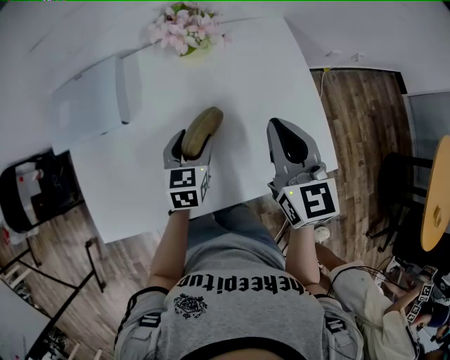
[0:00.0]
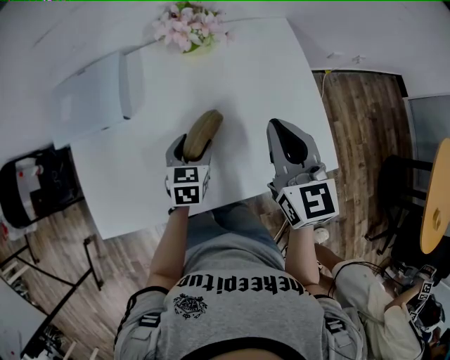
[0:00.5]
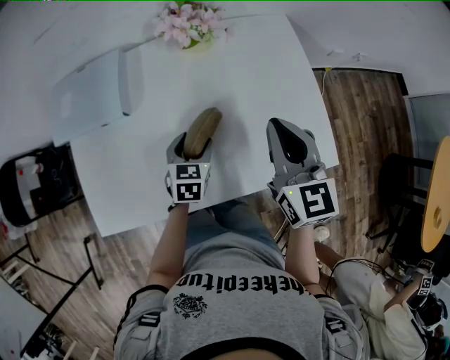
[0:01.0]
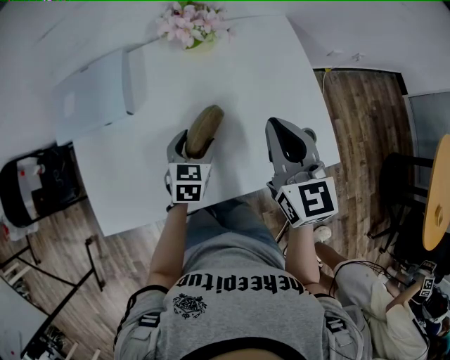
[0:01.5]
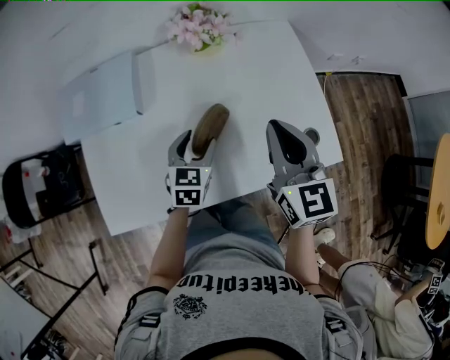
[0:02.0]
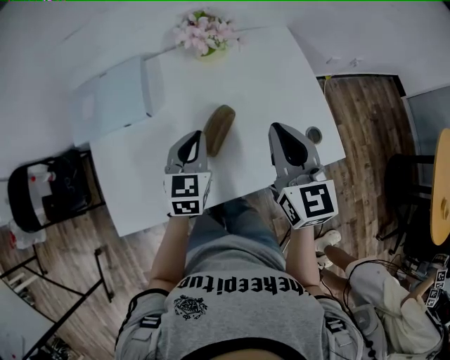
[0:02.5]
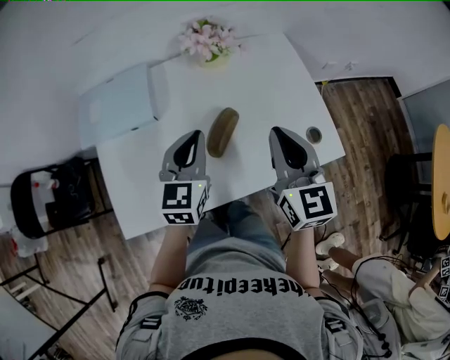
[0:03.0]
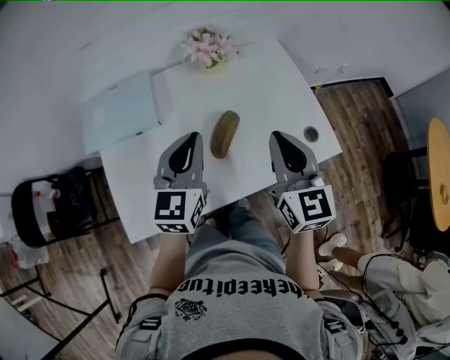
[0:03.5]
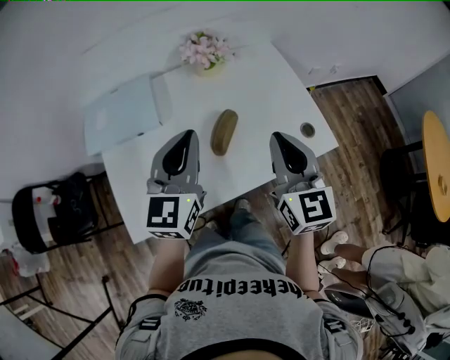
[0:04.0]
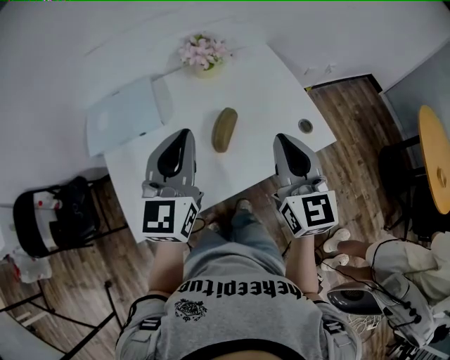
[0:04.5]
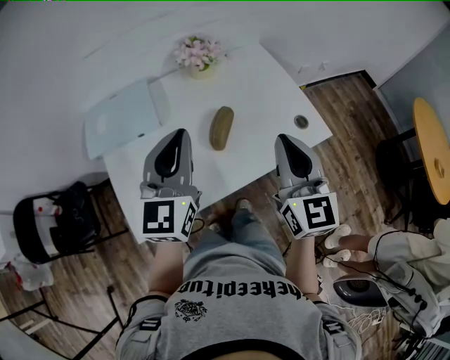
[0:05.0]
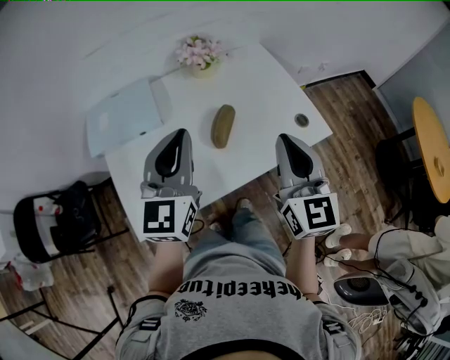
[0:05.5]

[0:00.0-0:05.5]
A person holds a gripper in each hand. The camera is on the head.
0:00.0 to 0:02.0: The right gripper ends up about 5 cm from where it was.
0:02.0 to 0:03.5: The right gripper heads backward, covering some 5 cm, while the left gripper is displaced upward by about 20 cm, turns by about 30 degrees, and closes up.
0:03.5 to 0:05.5: The left gripper heads upward and backward, covering roughly 10 cm; the right gripper is displaced backward by roughly 10 cm.

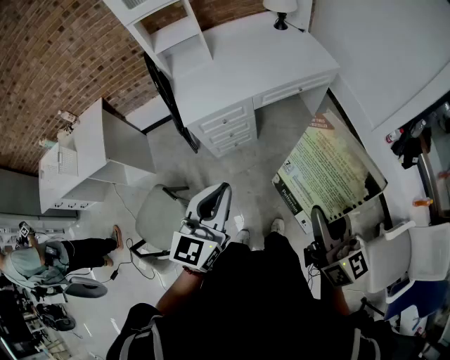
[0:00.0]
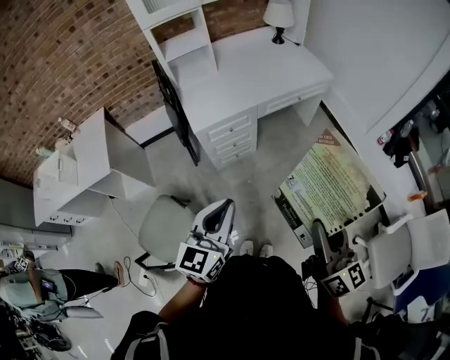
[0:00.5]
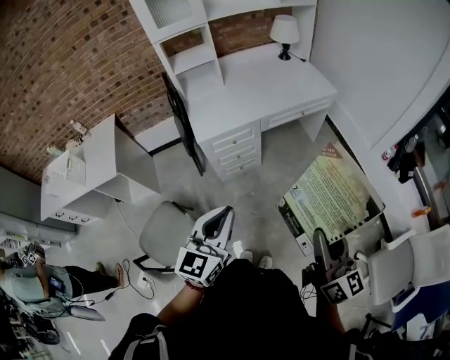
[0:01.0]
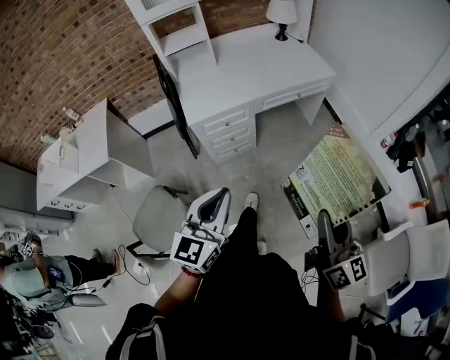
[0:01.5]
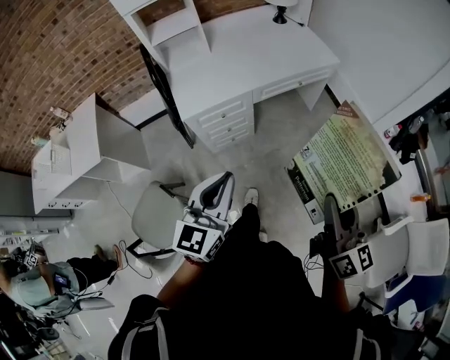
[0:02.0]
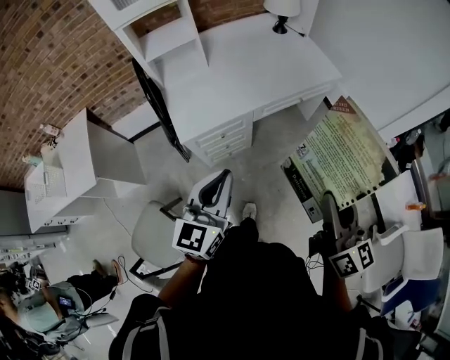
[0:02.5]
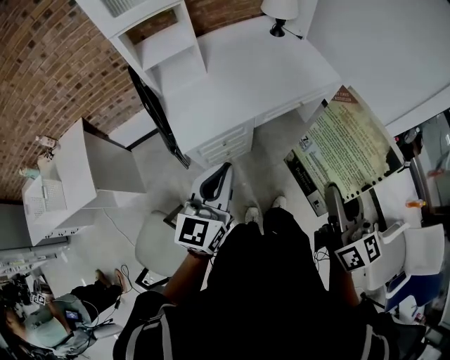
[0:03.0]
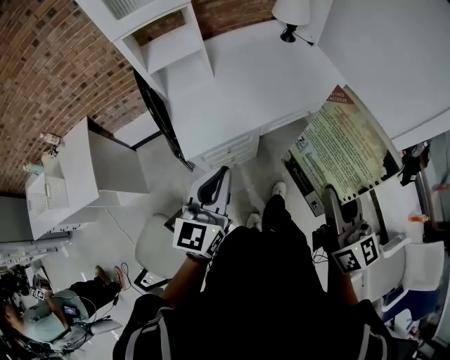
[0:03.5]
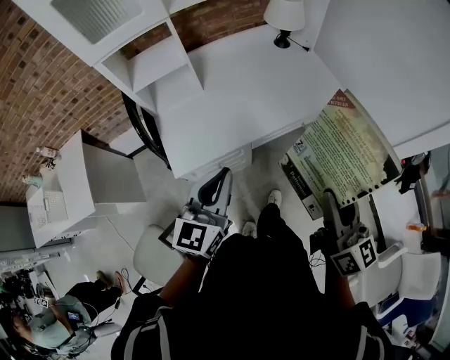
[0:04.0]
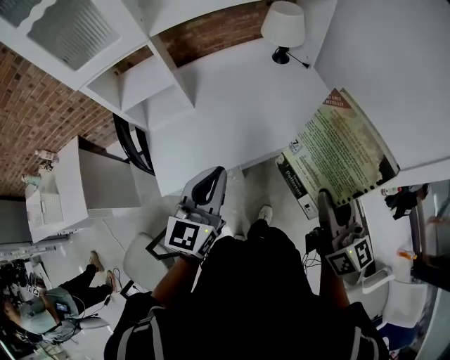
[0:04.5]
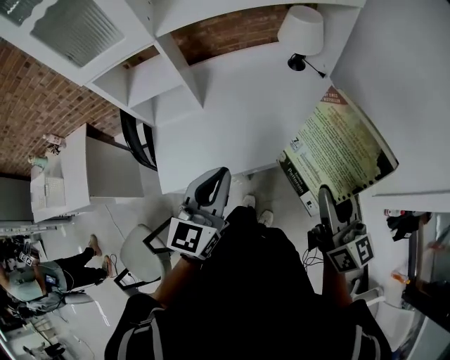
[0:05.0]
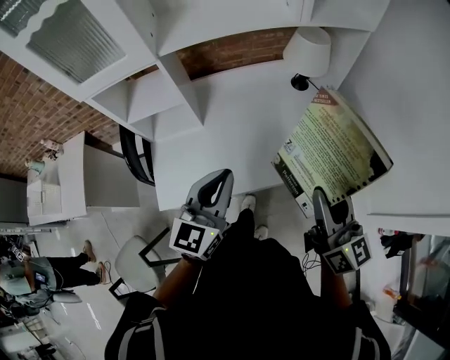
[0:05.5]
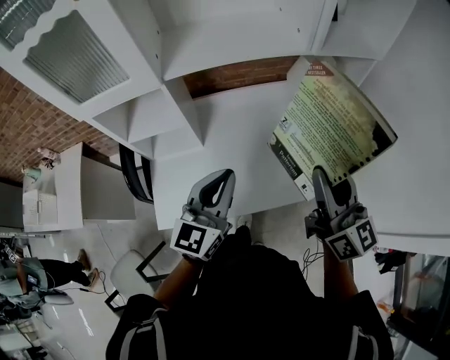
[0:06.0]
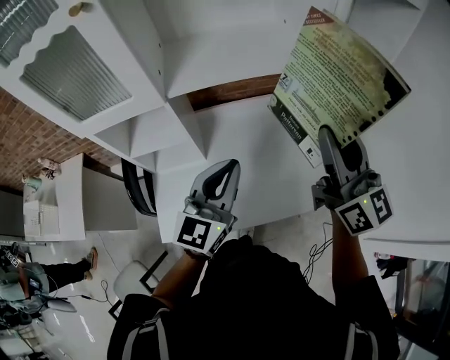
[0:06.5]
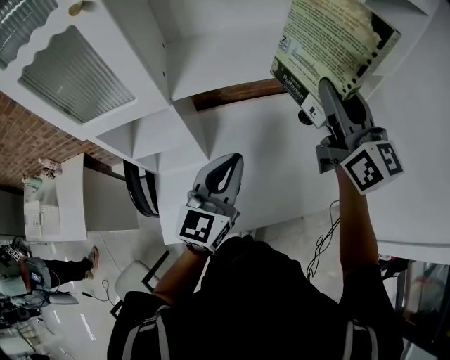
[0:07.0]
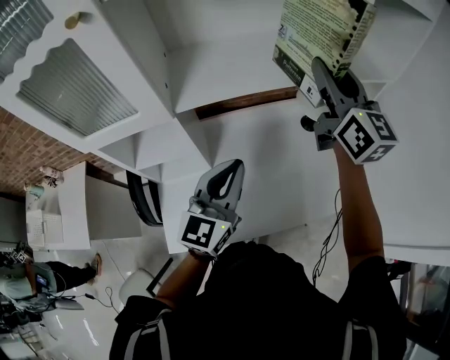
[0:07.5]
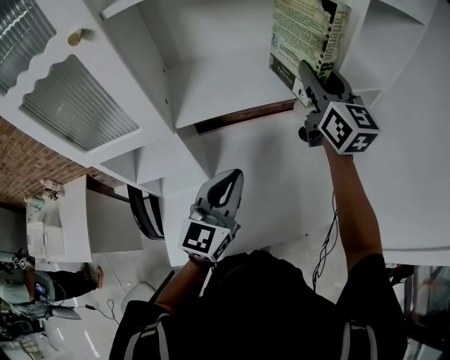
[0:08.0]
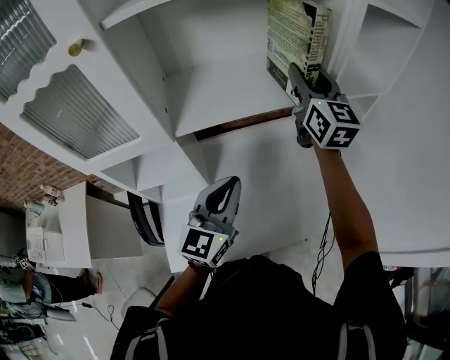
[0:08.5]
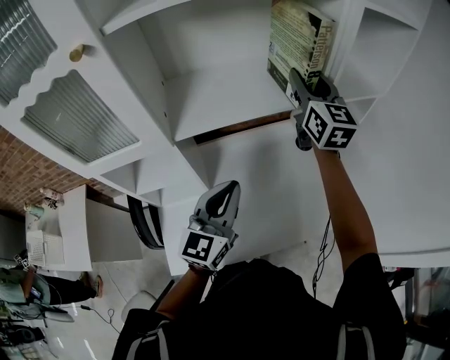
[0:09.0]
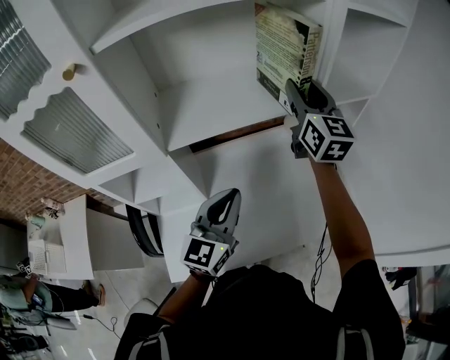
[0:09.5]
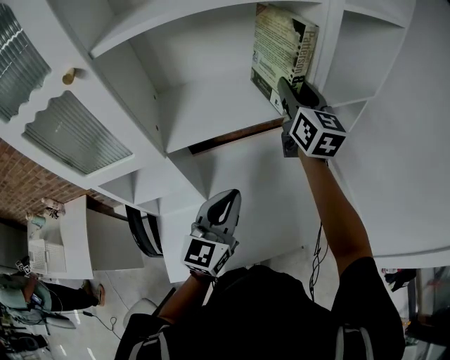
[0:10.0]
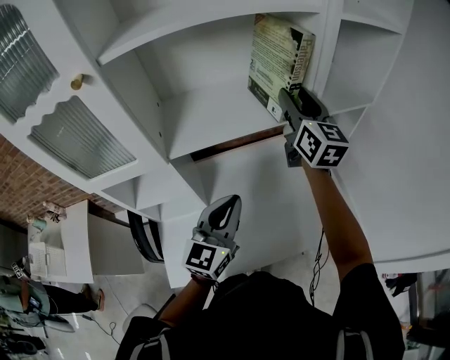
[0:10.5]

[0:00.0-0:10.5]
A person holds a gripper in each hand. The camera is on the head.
0:00.0 to 0:02.0: The left gripper reaches roughly 10 cm backward, then returns, while the right gripper moves some 10 cm backward and comes back.
0:02.0 to 0:04.0: Both grippers travel together forward, some 30 cm.
0:04.0 to 0:06.5: The grippers both shift forward by some 40 cm. The right gripper changes its angle by roughly 20 degrees.
0:06.5 to 0:08.5: The left gripper heads forward, covering approximately 5 cm; the right gripper goes about 20 cm forward.
0:08.5 to 0:10.5: The grippers stay close to where they were, moving slightly.

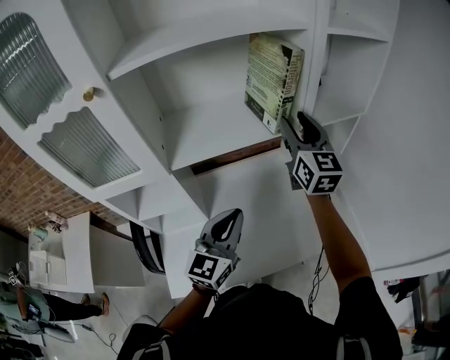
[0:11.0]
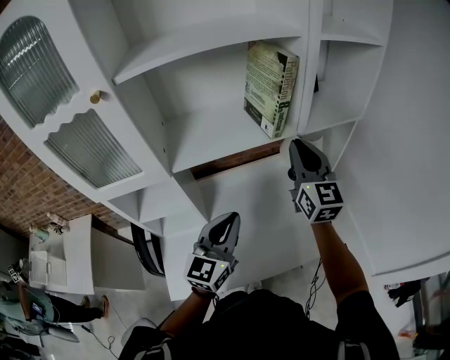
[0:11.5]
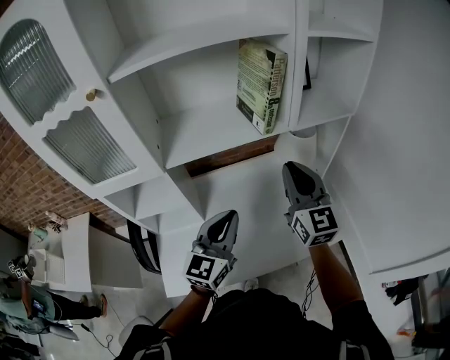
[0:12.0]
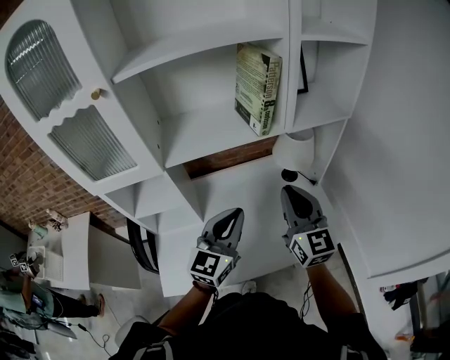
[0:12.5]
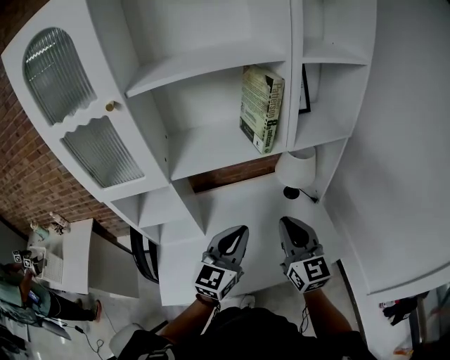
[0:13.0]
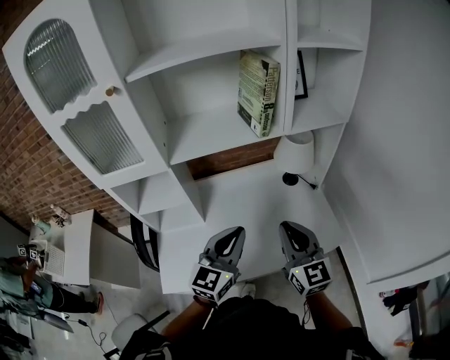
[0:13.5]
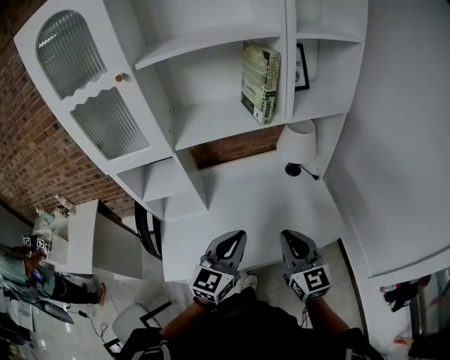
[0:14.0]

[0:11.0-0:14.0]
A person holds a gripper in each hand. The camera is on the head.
0:11.0 to 0:12.5: The right gripper heads backward and downward, covering about 20 cm, and closes.
0:12.5 to 0:14.0: The right gripper travels backward and downward by about 15 cm. The left gripper heads backward, covering approximately 10 cm.

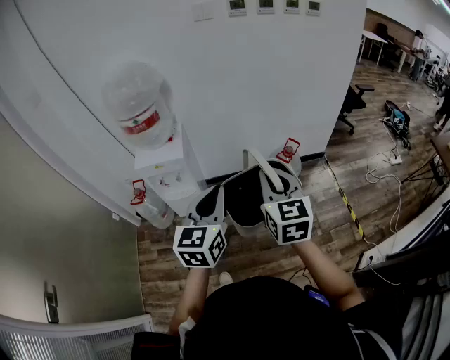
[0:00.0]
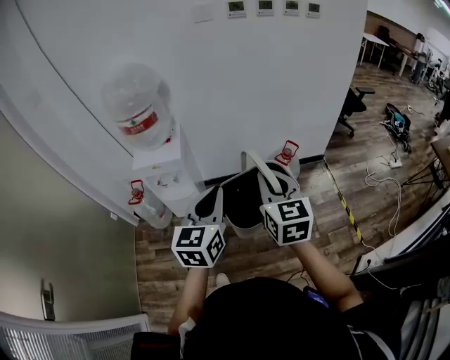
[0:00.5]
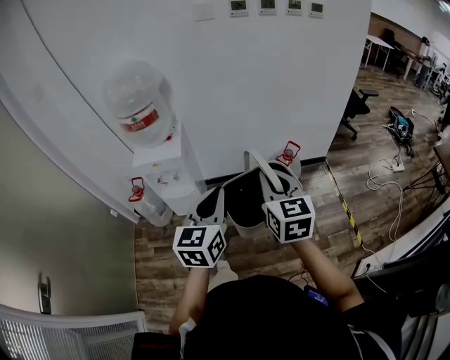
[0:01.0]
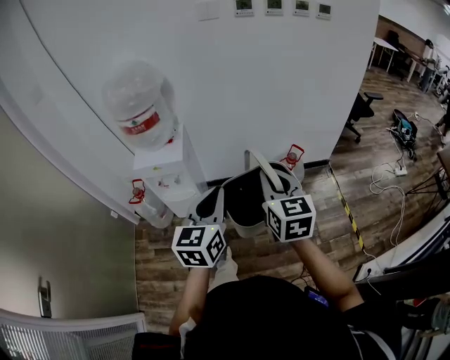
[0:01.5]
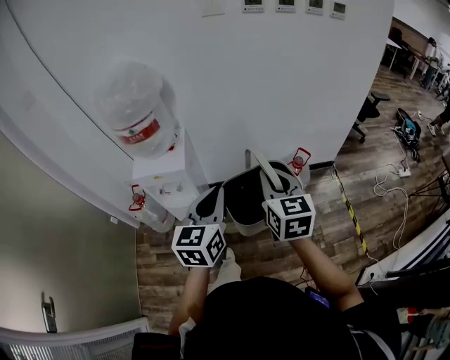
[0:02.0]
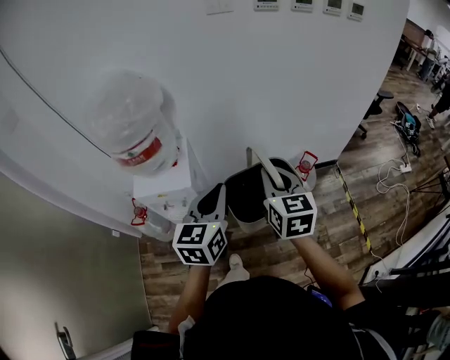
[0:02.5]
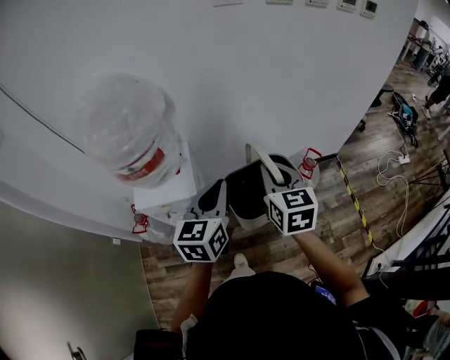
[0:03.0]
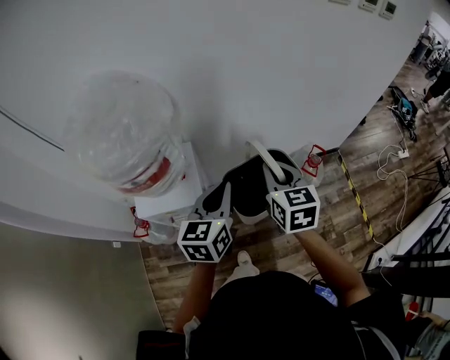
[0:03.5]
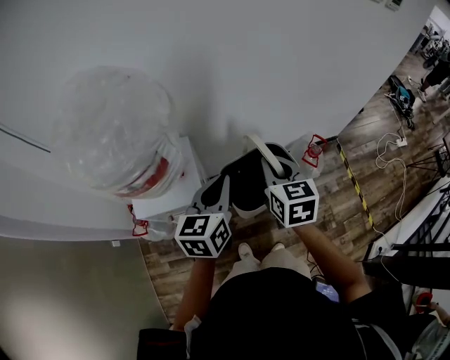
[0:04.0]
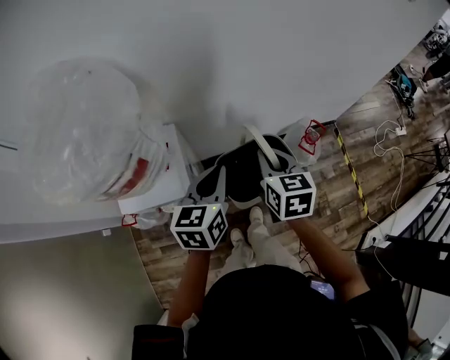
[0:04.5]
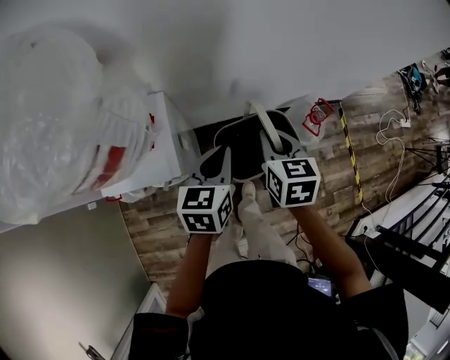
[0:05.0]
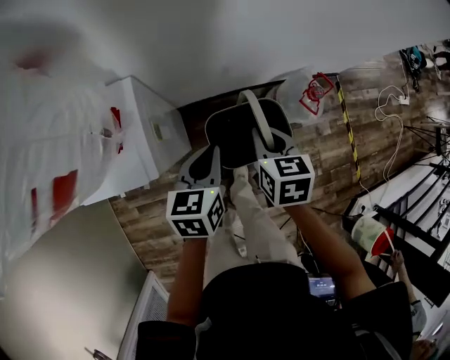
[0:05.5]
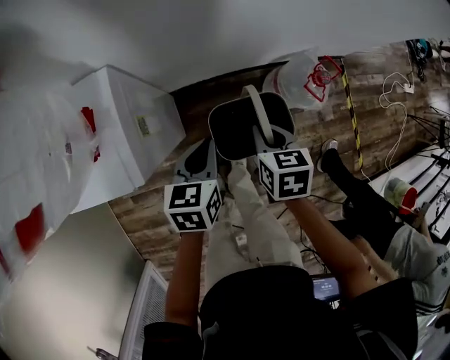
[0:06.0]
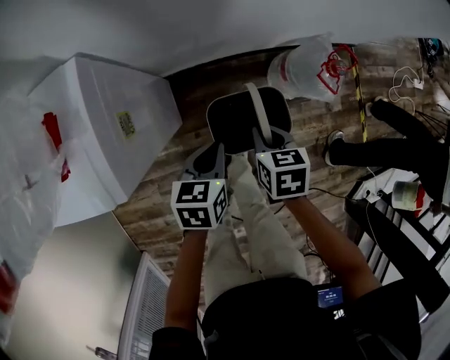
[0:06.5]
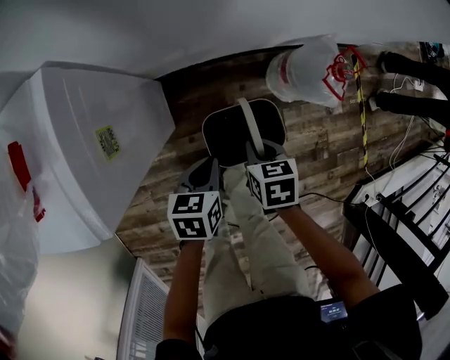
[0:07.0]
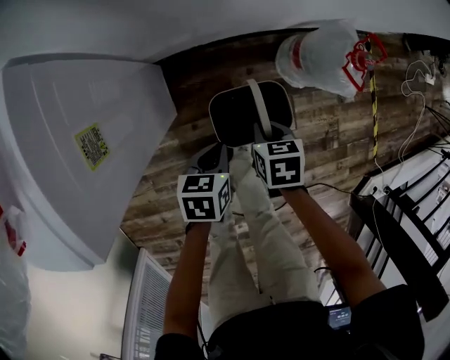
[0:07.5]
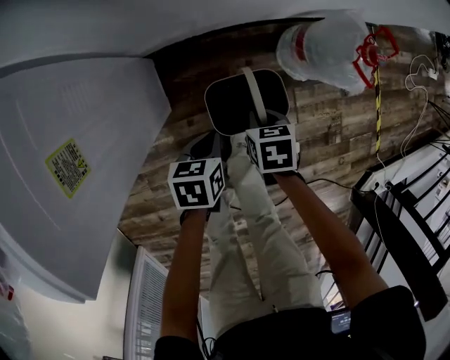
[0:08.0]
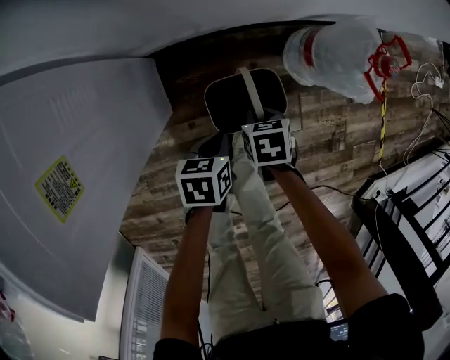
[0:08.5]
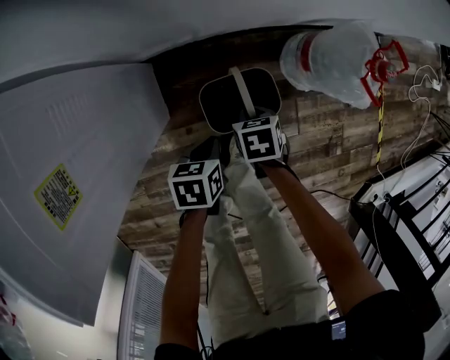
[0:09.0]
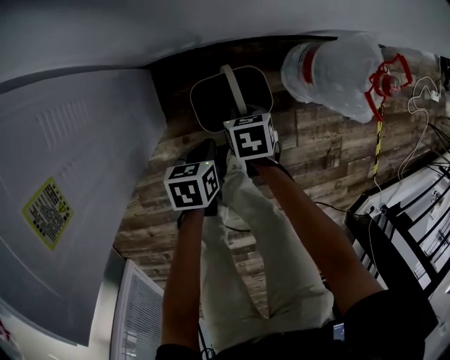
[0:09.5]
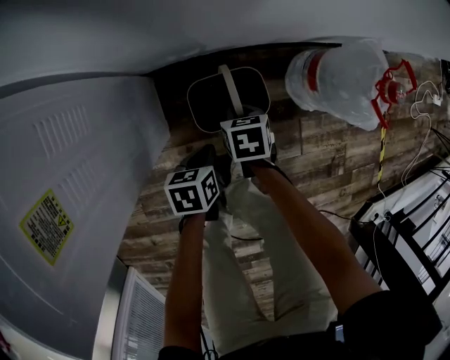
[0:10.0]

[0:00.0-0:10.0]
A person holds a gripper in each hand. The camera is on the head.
0:00.0 to 0:02.0: Both grippers move forward, some 10 cm.
0:02.0 to 0:04.0: Both grippers travel together forward and to the left, roughly 30 cm.
0:04.0 to 0:06.0: Both grippers travel together downward, roughly 30 cm. The left gripper turns by some 20 degrees. The right gripper swivels roughly 30 degrees.
0:06.0 to 0:08.0: The grippers both shift downward by approximately 30 cm. The right gripper turns by about 20 degrees; the left gripper rotates roughly 20 degrees.
0:08.0 to 0:10.0: Both grippers move downward, roughly 10 cm.
